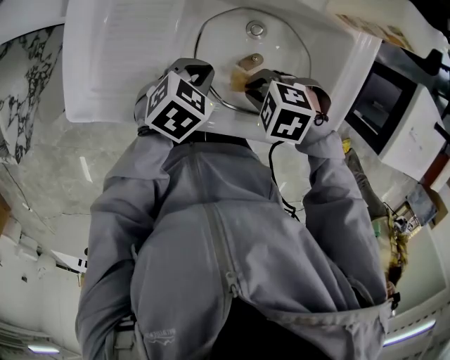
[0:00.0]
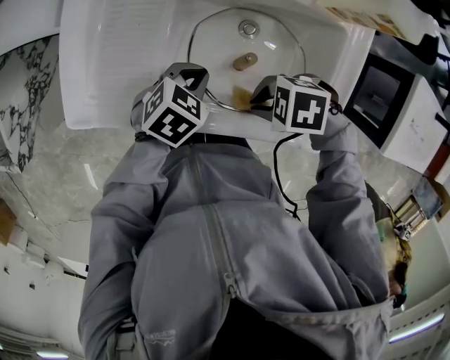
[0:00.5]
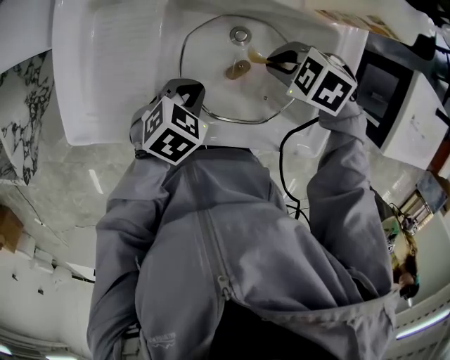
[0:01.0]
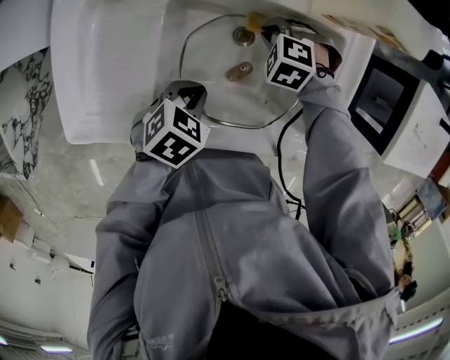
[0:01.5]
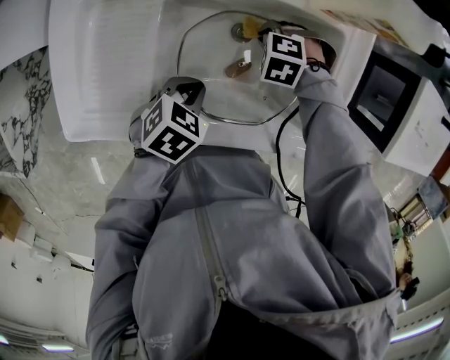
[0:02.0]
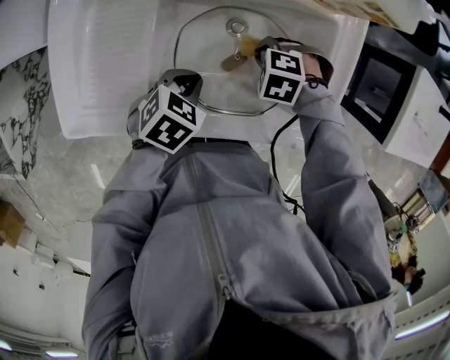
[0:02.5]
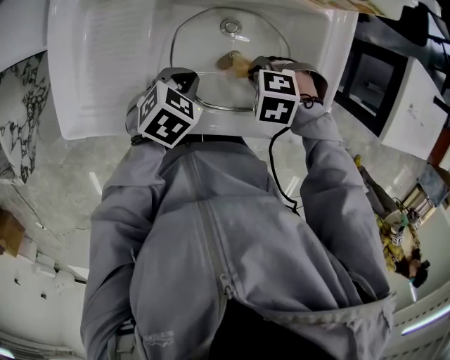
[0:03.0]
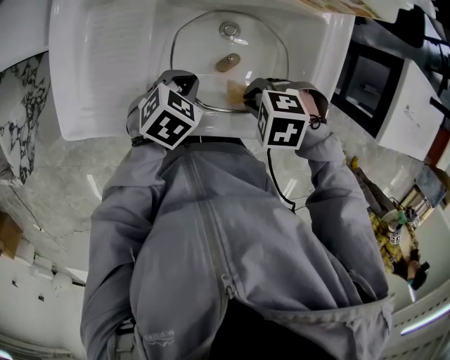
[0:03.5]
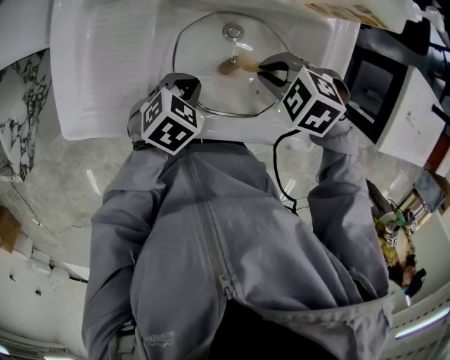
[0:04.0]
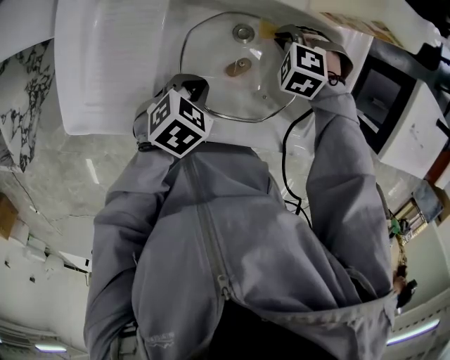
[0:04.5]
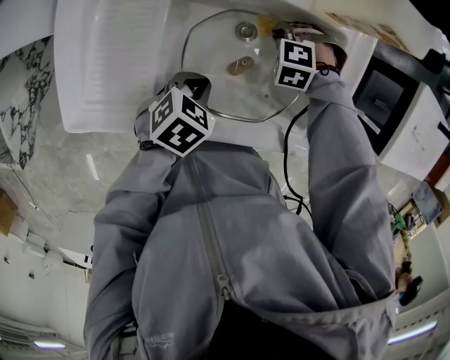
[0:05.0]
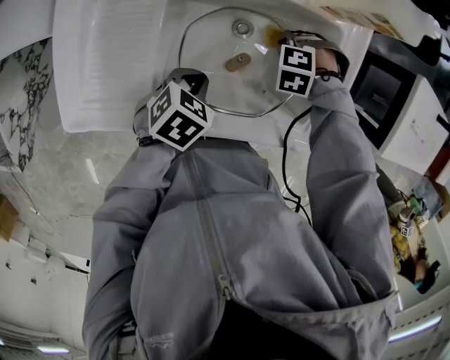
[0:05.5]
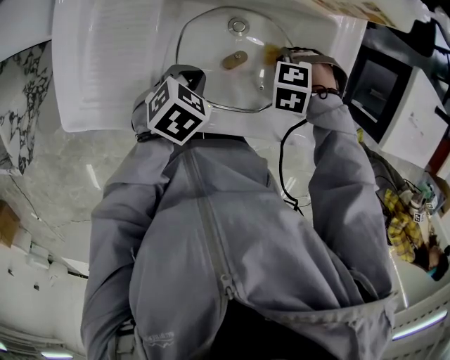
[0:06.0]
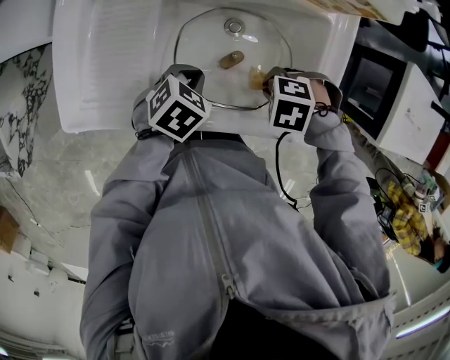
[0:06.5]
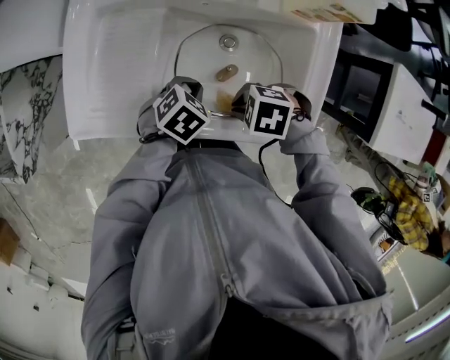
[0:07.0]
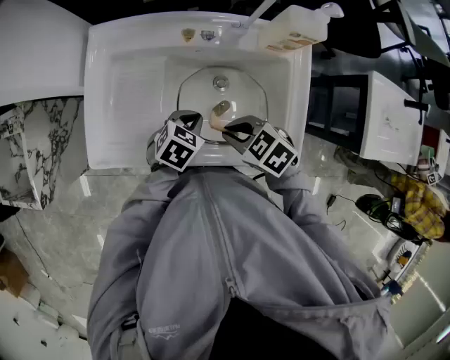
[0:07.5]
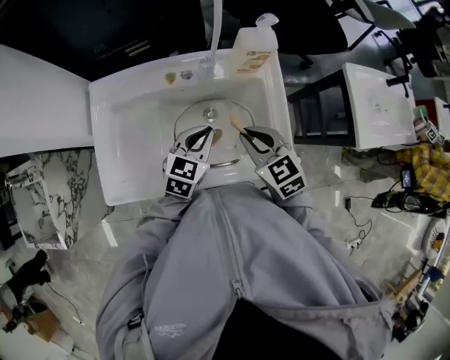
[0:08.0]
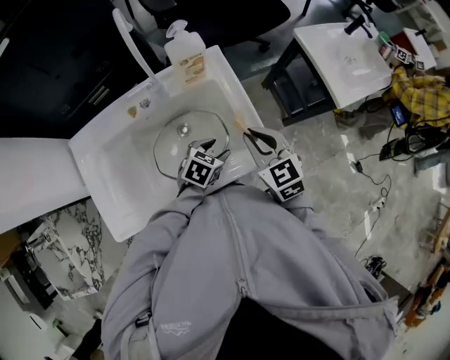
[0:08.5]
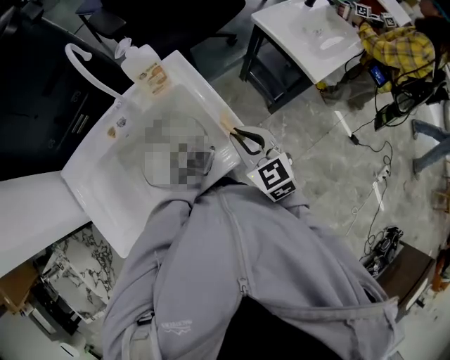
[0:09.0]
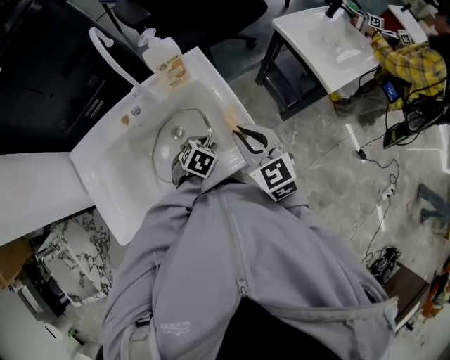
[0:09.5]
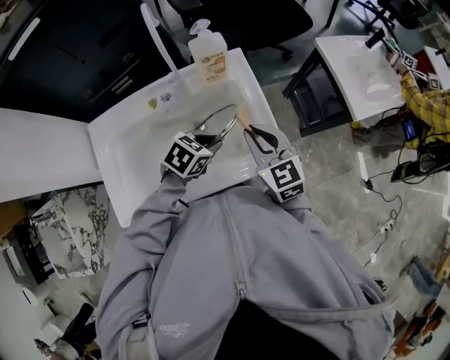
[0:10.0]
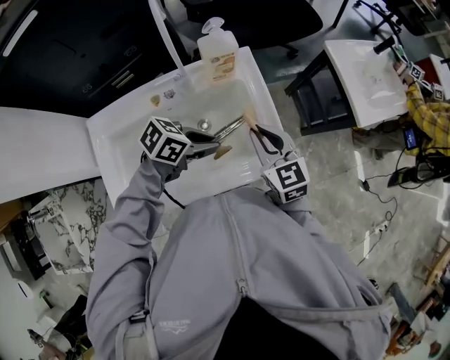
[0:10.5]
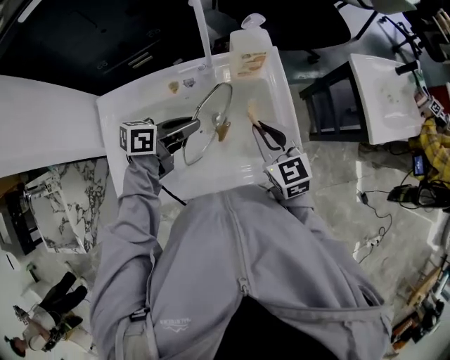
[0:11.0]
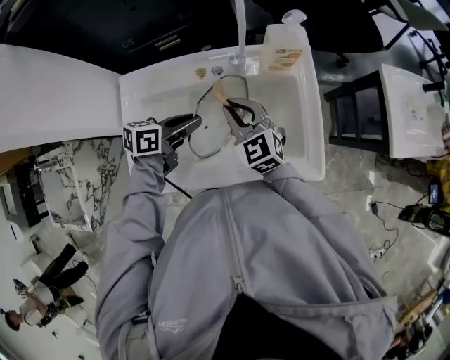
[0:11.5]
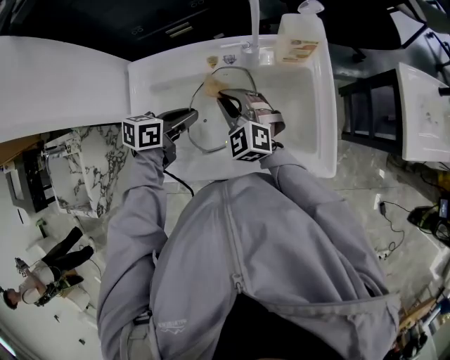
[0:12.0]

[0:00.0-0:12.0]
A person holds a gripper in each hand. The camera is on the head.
0:00.0 to 0:02.0: The right gripper shifts by about 20 cm, and changes its angle by approximately 20 degrees.
0:02.0 to 0:04.0: The right gripper is displaced upward by about 15 cm.
0:04.0 to 0:06.0: The right gripper moves downward, roughly 10 cm, and changes its angle by some 30 degrees.
0:06.0 to 0:08.0: The right gripper moves upward, some 25 cm, and angles its fingers upward, by some 50 degrees; the left gripper shifts some 15 cm upward, and angles its fingers upward, by about 30 degrees.
0:08.0 to 0:10.0: The right gripper turns by some 20 degrees. The left gripper travels downward and back again, approximately 15 cm each way, swivels some 40 degrees, and opens, then closes again.
0:10.0 to 0:12.0: The right gripper ends up roughly 25 cm from where it was, and changes its angle by about 40 degrees. Meanwhile the left gripper changes place by some 25 cm, and changes its angle by approximately 40 degrees.

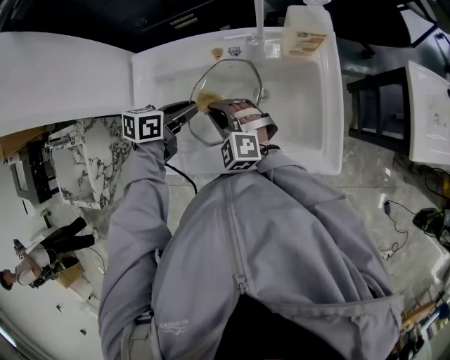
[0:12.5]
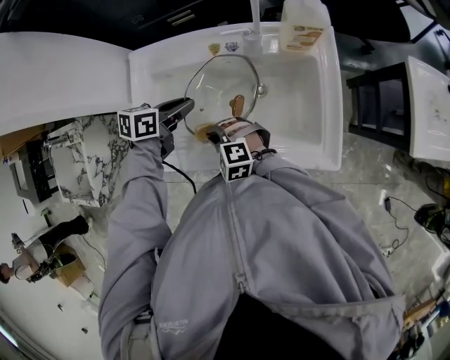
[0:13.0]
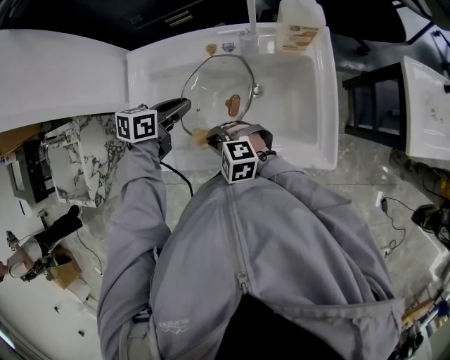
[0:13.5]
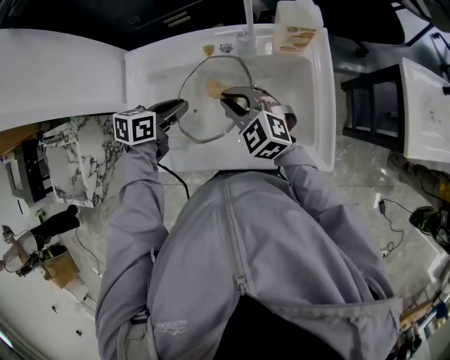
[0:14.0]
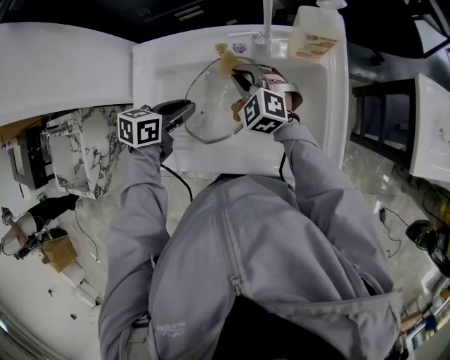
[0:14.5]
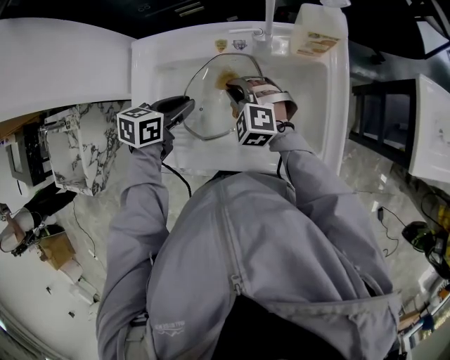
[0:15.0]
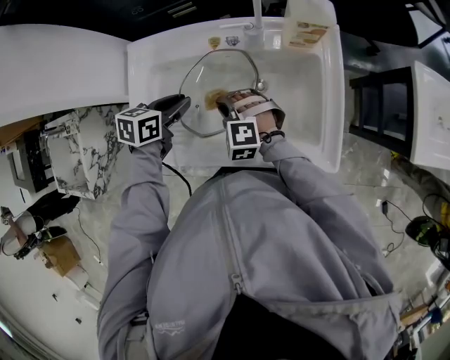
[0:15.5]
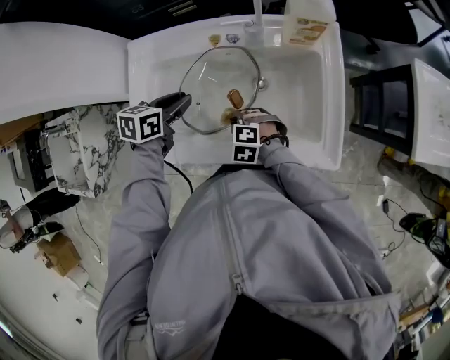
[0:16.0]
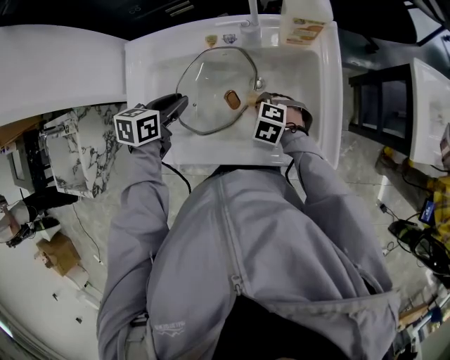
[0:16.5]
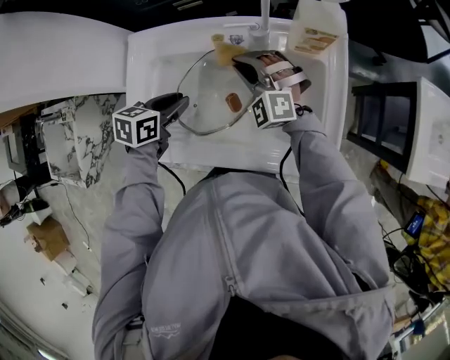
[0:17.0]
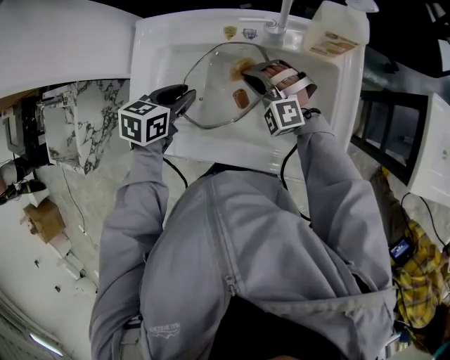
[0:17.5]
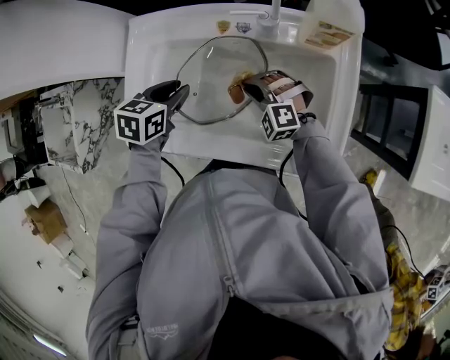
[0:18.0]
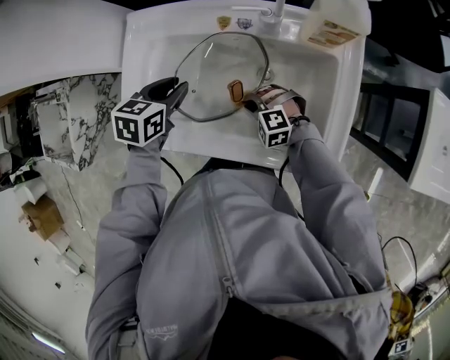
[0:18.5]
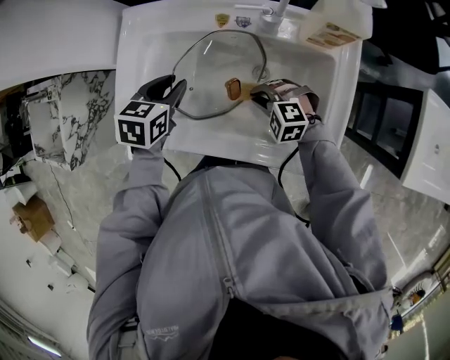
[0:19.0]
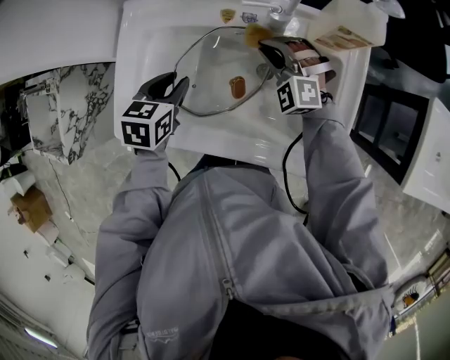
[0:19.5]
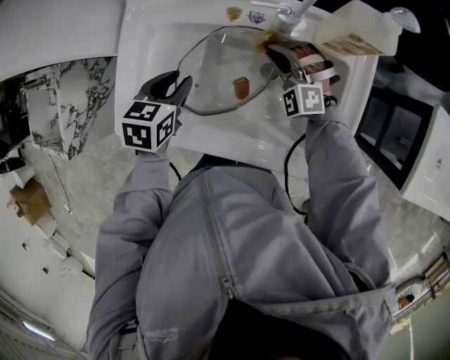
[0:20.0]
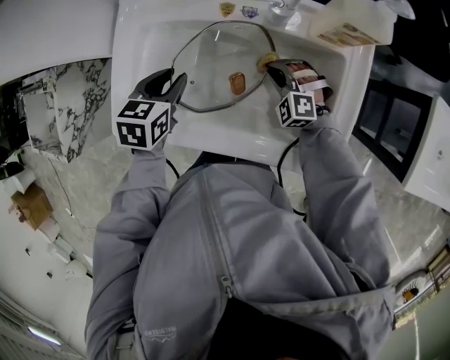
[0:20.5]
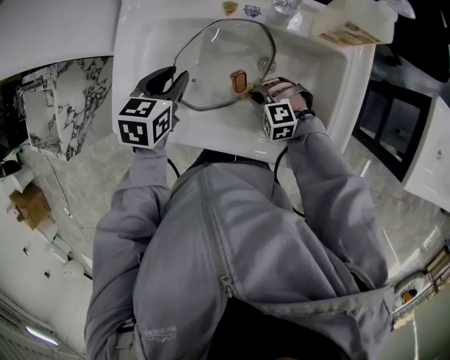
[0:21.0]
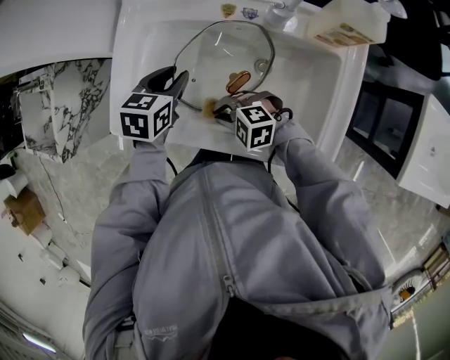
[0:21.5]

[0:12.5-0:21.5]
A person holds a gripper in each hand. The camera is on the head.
0:12.5 to 0:14.5: The right gripper moves up and down over roughly 10 cm, changing direction 2 times.
0:14.5 to 0:17.0: The right gripper travels backward and back again, about 20 cm each way, and turns by about 20 degrees.
0:17.0 to 0:19.5: The right gripper shifts roughly 5 cm downward.
0:19.5 to 0:21.5: The right gripper reaches about 15 cm downward, then returns, and changes its angle by roughly 50 degrees.

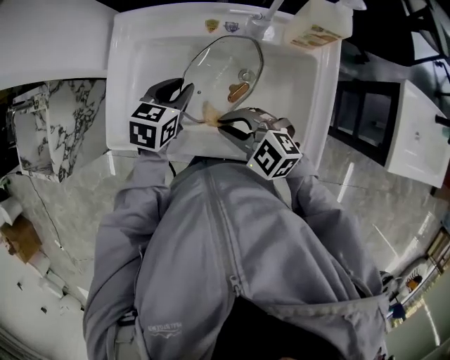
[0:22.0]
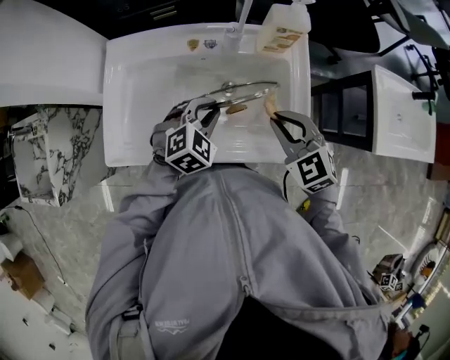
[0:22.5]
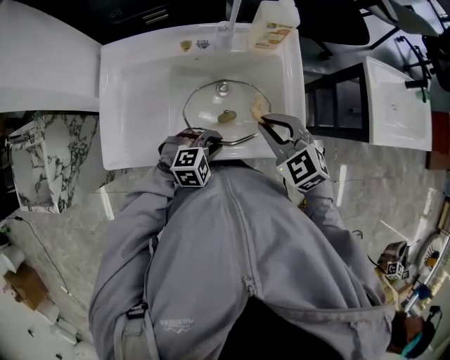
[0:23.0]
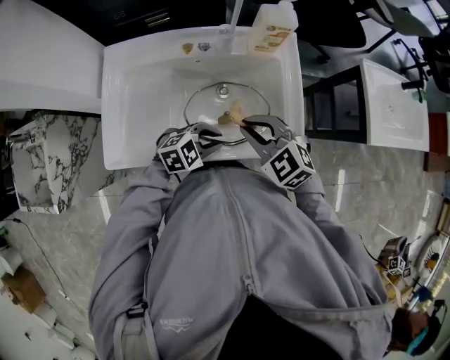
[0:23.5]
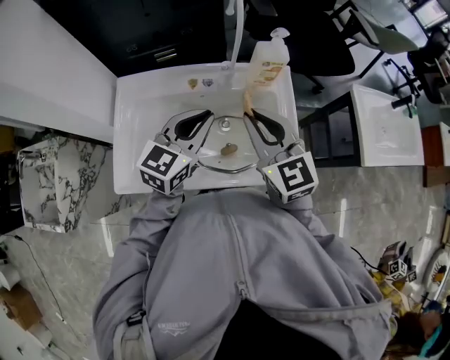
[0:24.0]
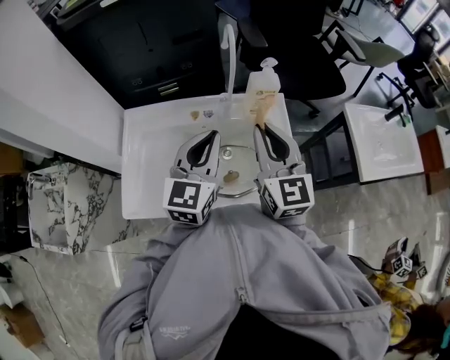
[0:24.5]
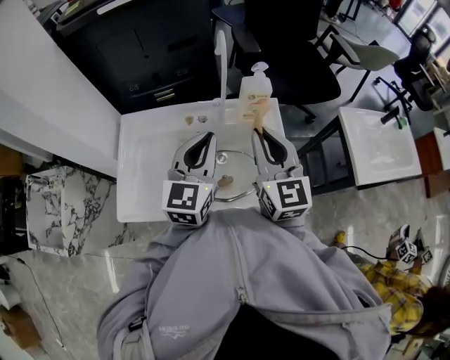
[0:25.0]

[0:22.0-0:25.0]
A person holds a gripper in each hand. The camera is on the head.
0:22.0 to 0:23.5: The left gripper moves about 20 cm, and rotates approximately 60 degrees. Meanwhile the right gripper swivels roughly 30 degrees.
0:23.5 to 0:25.0: The right gripper travels upward by roughly 20 cm, and angles its fingers upward, by approximately 40 degrees. The left gripper is displaced upward by about 30 cm, and tips its fingers upward by roughly 40 degrees.

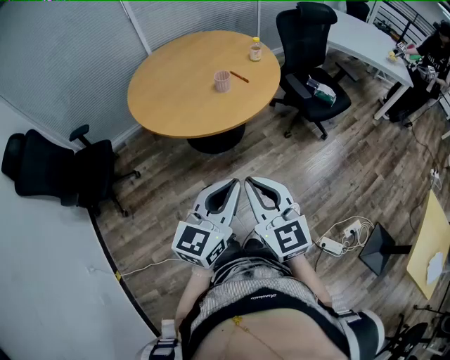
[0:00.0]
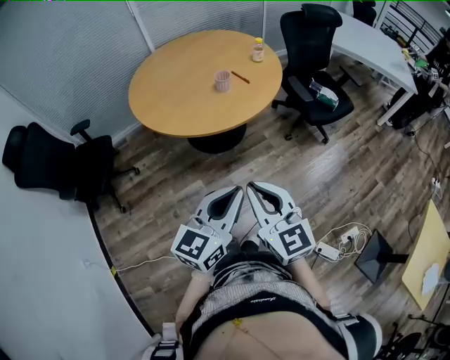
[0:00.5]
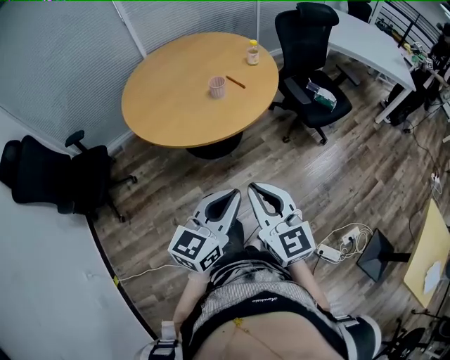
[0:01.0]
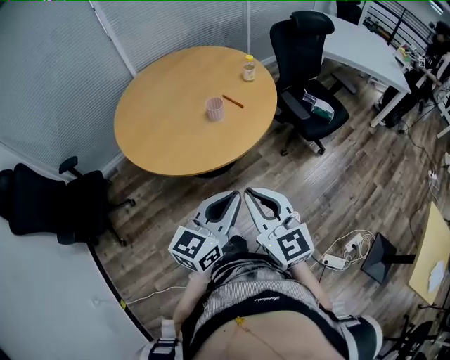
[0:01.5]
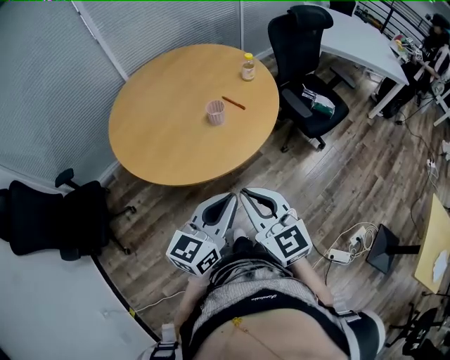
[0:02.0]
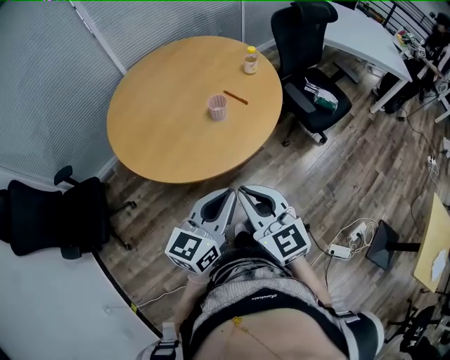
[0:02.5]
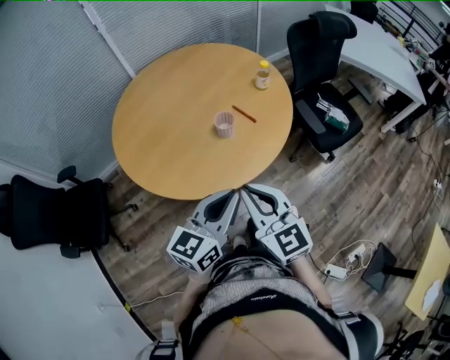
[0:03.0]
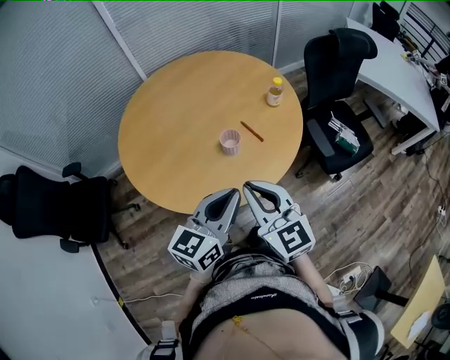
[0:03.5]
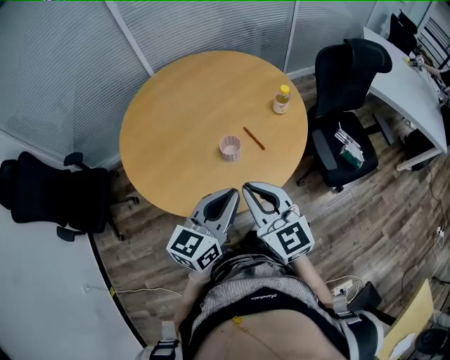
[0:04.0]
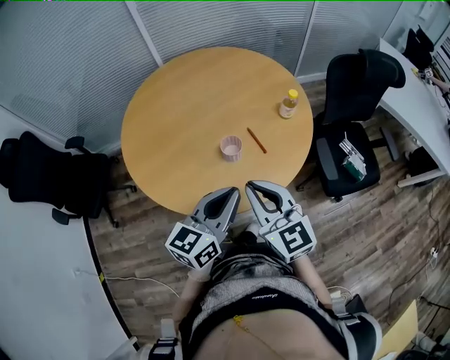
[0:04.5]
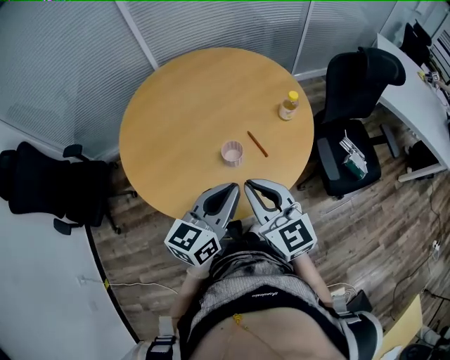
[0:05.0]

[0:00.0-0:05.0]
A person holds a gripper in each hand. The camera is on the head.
0:00.0 to 0:02.5: Both grippers travel together forward, about 20 cm.
0:02.5 to 0:05.0: The two grippers go approximately 25 cm forward.
